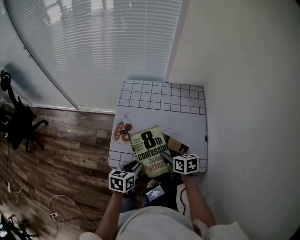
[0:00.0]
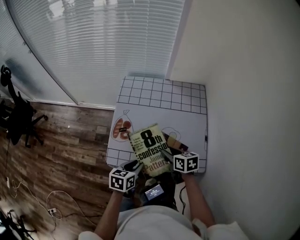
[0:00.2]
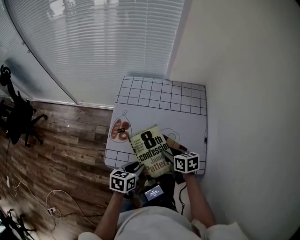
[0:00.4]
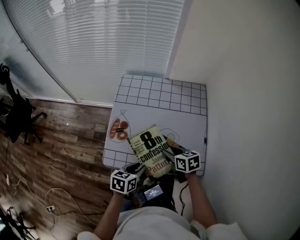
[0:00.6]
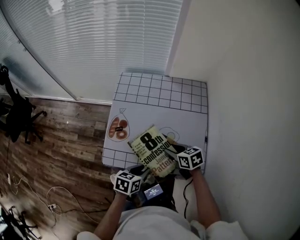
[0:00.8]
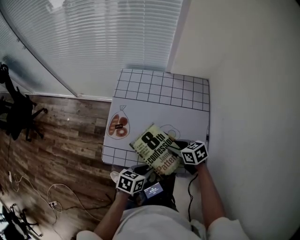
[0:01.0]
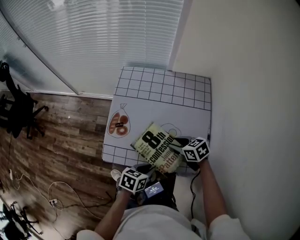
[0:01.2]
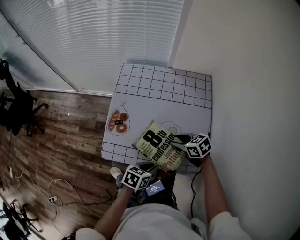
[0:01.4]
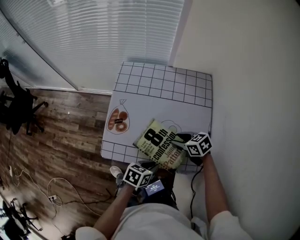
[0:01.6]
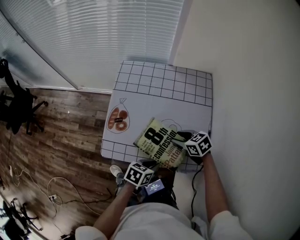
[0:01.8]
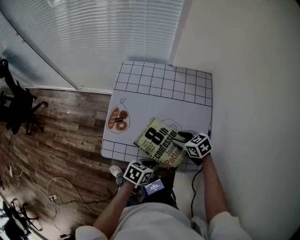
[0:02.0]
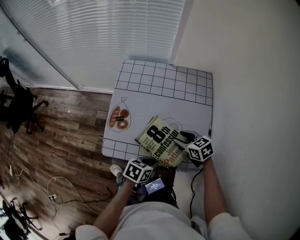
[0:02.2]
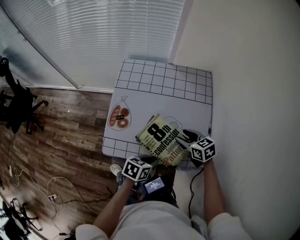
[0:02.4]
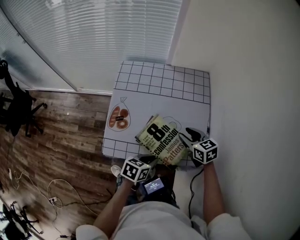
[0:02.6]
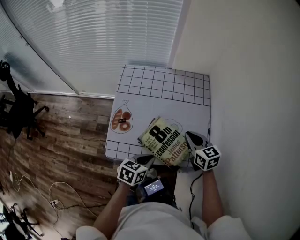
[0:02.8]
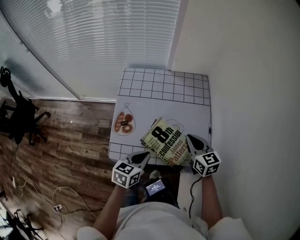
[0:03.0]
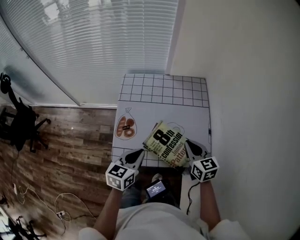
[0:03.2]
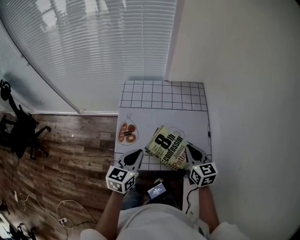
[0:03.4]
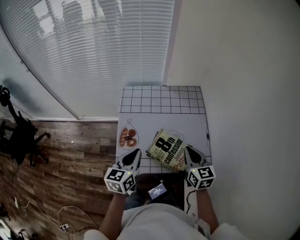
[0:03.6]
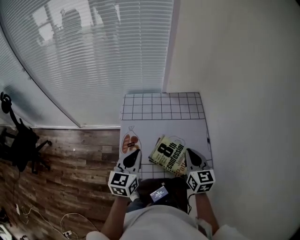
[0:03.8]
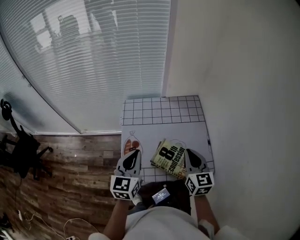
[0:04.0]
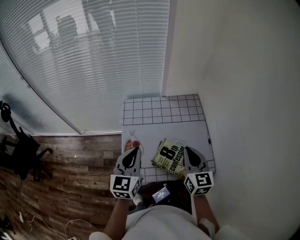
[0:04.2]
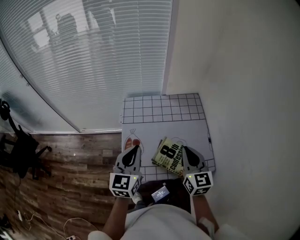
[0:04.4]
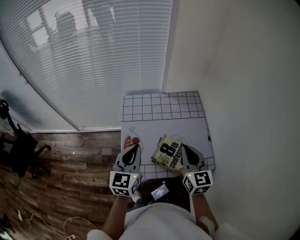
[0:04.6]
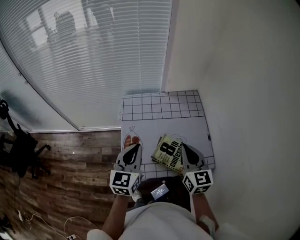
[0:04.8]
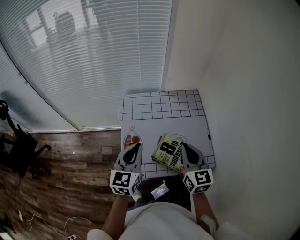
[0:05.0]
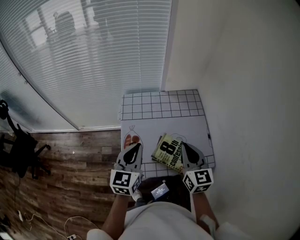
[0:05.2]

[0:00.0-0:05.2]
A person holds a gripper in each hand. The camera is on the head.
0.0 to 1.8 s: The left gripper ends up approximately 15 cm from where it was, and turns by roughly 20 degrees, while the right gripper moves about 10 cm, and rotates roughly 30 degrees.
1.8 to 3.4 s: Both grippers move upward, about 15 cm. The right gripper turns by approximately 50 degrees, and closes, while the left gripper swivels roughly 40 degrees.
3.4 to 5.2 s: The right gripper goes some 15 cm upward and to the left, while the left gripper goes approximately 10 cm upward.

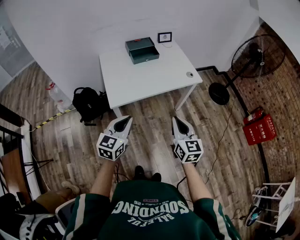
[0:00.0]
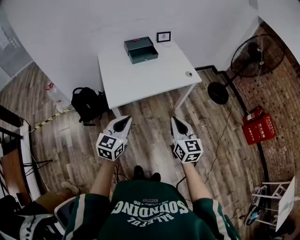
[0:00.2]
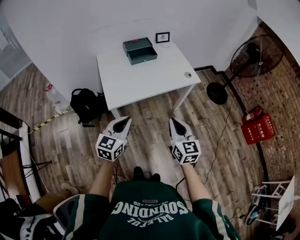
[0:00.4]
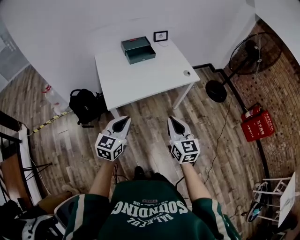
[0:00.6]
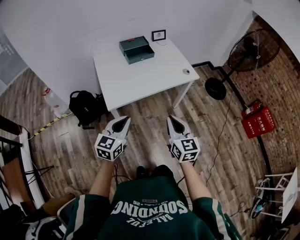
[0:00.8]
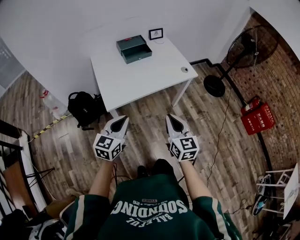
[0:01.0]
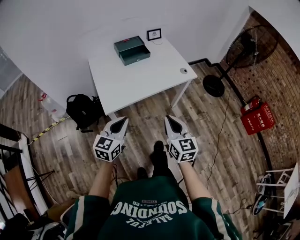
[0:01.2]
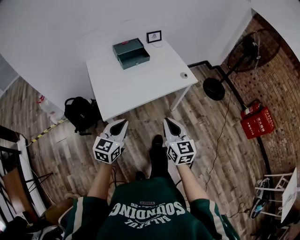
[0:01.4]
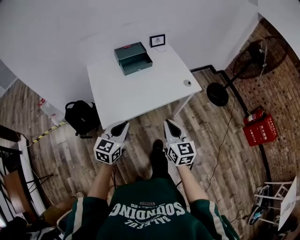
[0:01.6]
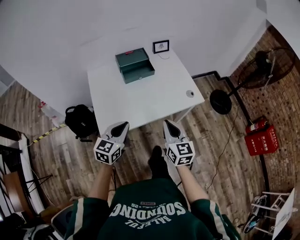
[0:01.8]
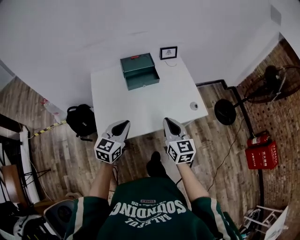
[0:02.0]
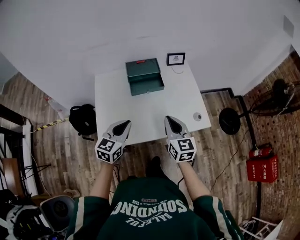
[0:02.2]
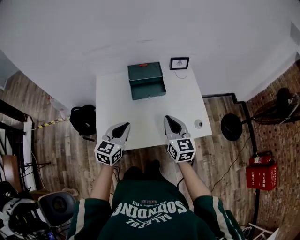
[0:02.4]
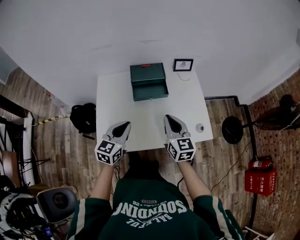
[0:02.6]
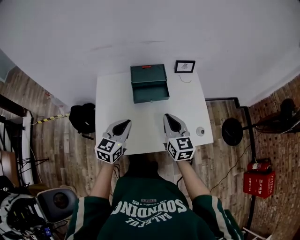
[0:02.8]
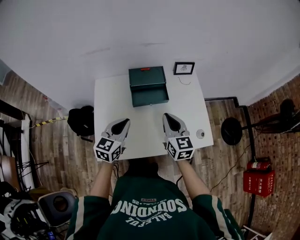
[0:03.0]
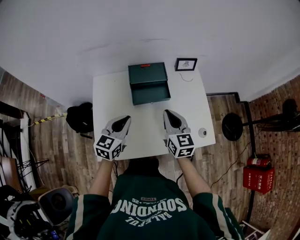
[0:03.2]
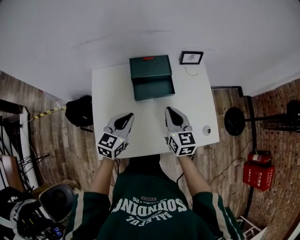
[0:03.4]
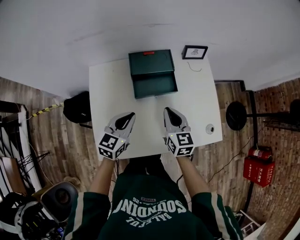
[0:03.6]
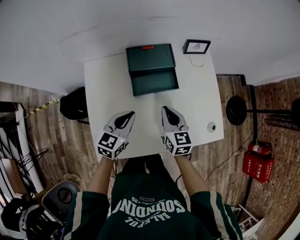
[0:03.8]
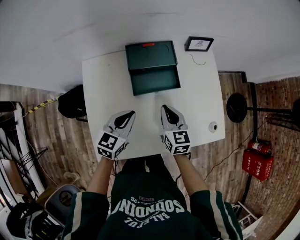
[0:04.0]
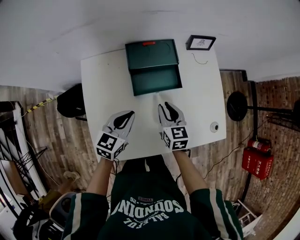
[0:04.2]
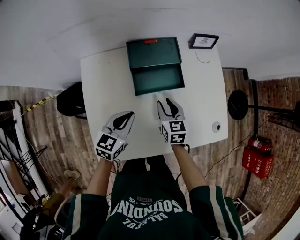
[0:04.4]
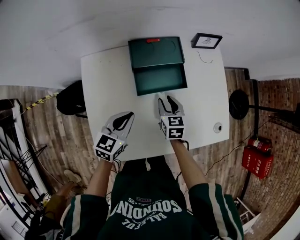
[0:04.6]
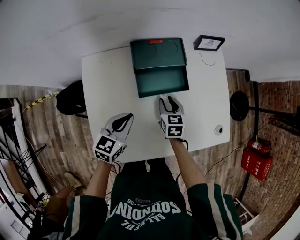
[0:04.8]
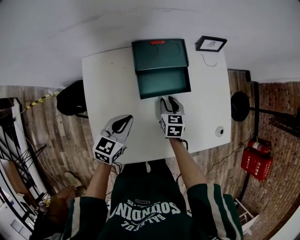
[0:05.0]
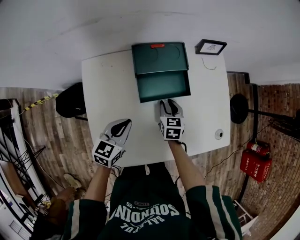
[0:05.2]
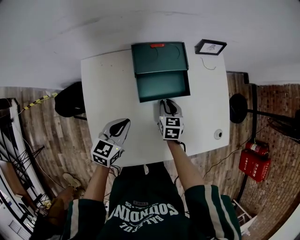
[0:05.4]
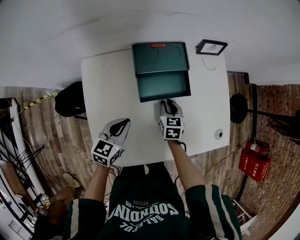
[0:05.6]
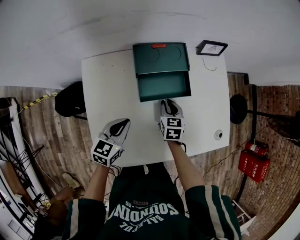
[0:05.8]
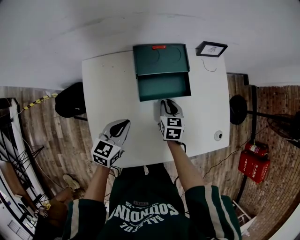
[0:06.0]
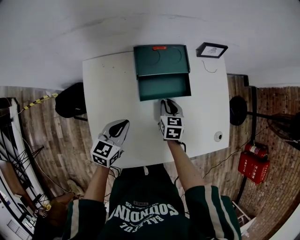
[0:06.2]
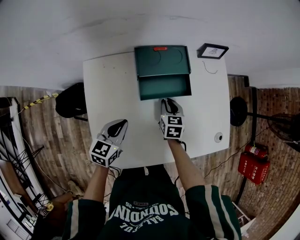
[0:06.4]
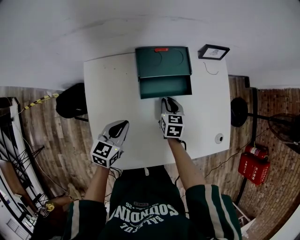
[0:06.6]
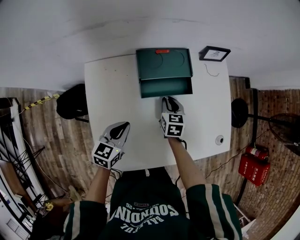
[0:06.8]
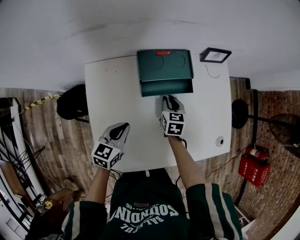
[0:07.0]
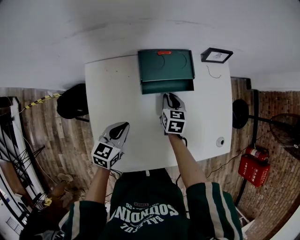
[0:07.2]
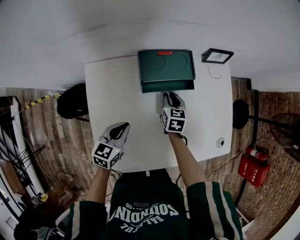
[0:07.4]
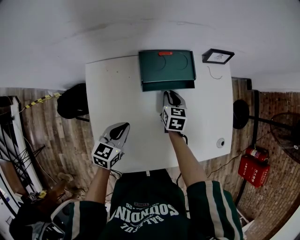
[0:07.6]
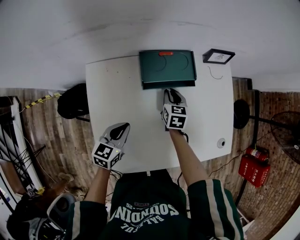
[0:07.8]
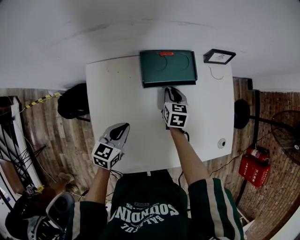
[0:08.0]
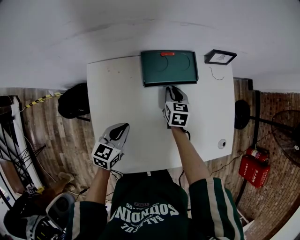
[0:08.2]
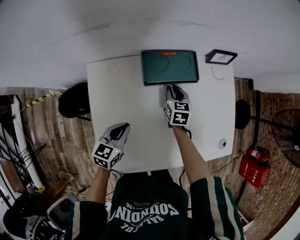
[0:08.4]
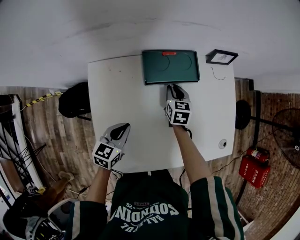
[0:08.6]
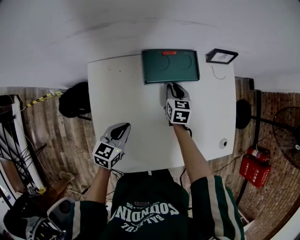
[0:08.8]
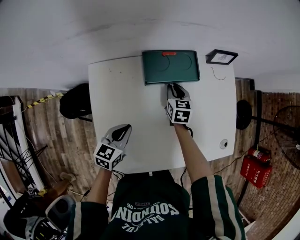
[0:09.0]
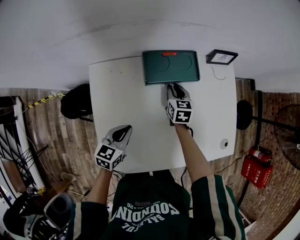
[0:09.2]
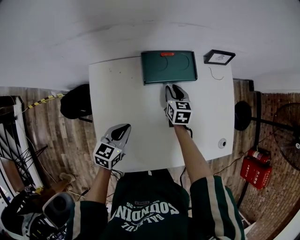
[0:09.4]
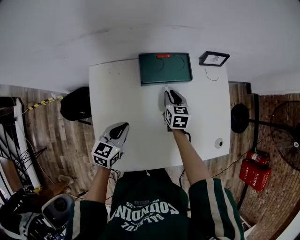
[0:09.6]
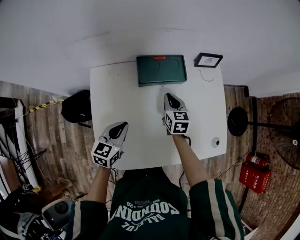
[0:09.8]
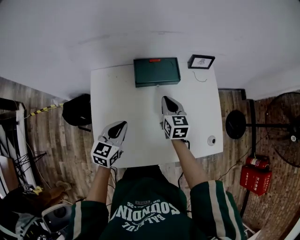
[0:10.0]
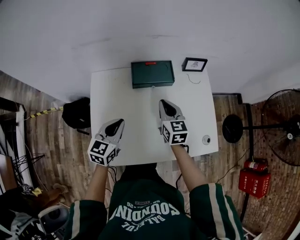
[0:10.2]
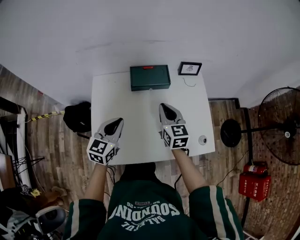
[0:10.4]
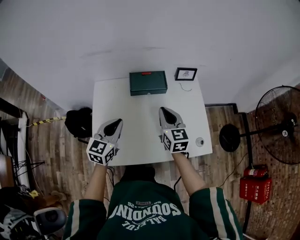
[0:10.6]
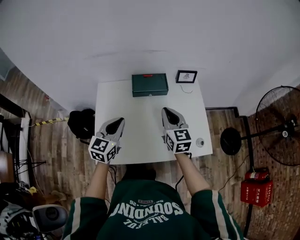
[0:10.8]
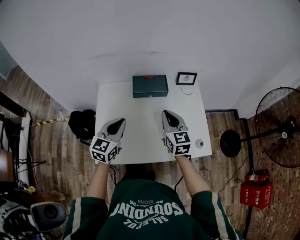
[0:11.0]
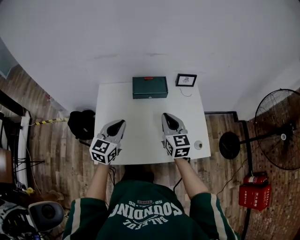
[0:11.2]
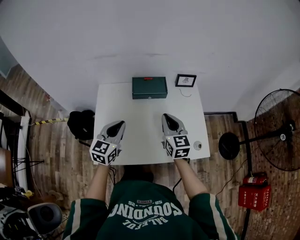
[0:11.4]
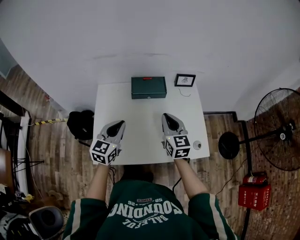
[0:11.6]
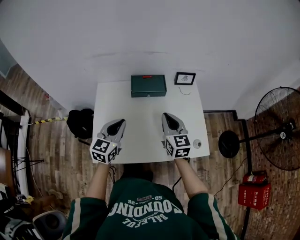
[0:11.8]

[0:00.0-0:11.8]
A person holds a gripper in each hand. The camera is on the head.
0.0 to 1.4 s: The grippers both shift forward by some 5 cm.
1.4 to 3.0 s: The two grippers go some 40 cm forward.
3.0 to 4.4 s: The right gripper goes roughly 20 cm downward and forward, changes its angle by some 20 degrees, and opens its fingers. Meanwhile the left gripper travels downward and forward by some 15 cm.
4.4 to 6.0 s: The left gripper shifts by some 5 cm. Meanwhile the right gripper heads downward, covering about 5 cm.
6.0 to 7.4 s: The right gripper shifts roughly 5 cm forward.
7.4 to 8.8 s: There are only small adjustments of the grippers.
8.8 to 10.4 s: The right gripper shifts roughly 25 cm upward and backward, and swivels approximately 20 degrees. The left gripper goes about 15 cm upward, and changes its angle by about 20 degrees.
10.4 to 11.8 s: The right gripper goes approximately 10 cm backward and upward; the left gripper moves some 5 cm.

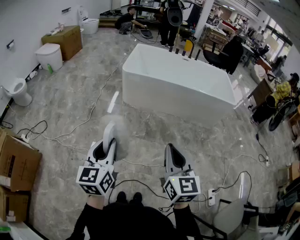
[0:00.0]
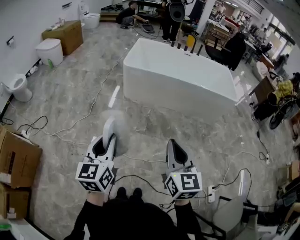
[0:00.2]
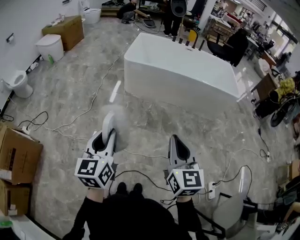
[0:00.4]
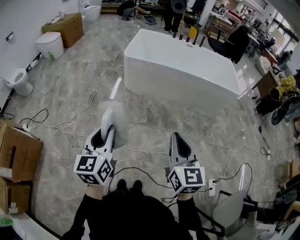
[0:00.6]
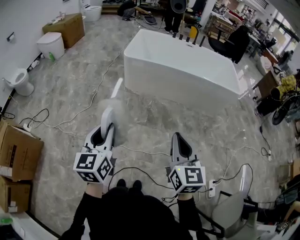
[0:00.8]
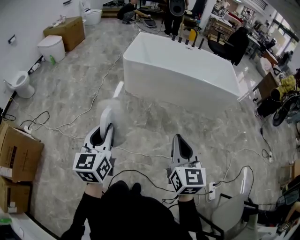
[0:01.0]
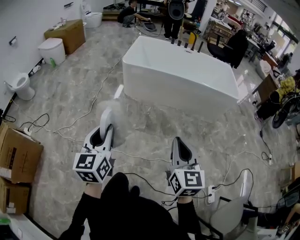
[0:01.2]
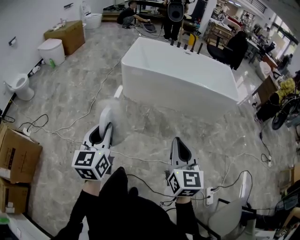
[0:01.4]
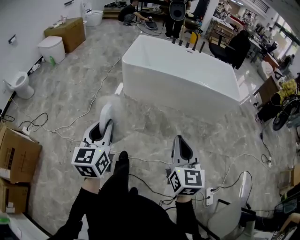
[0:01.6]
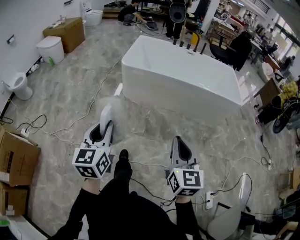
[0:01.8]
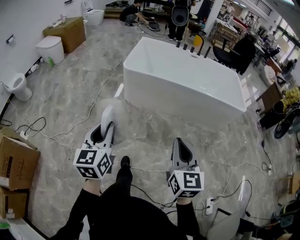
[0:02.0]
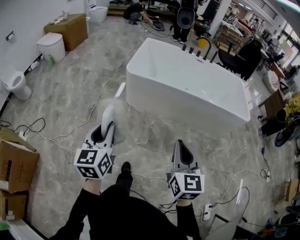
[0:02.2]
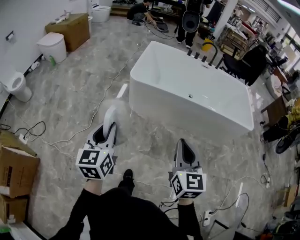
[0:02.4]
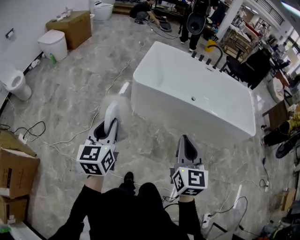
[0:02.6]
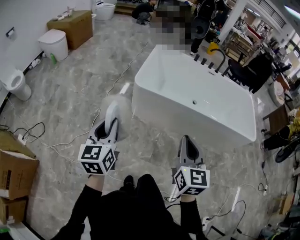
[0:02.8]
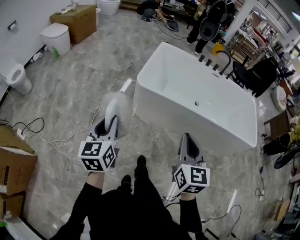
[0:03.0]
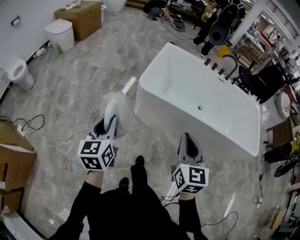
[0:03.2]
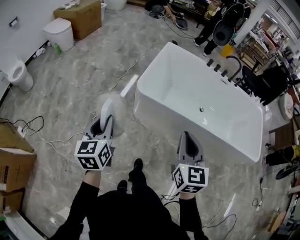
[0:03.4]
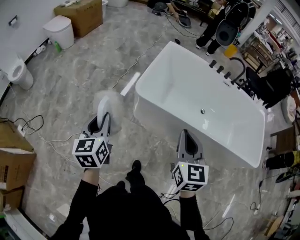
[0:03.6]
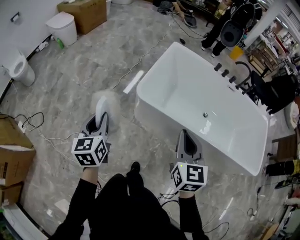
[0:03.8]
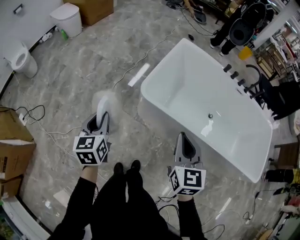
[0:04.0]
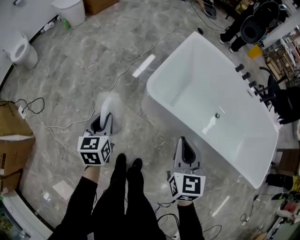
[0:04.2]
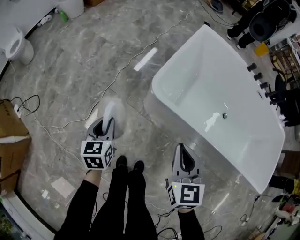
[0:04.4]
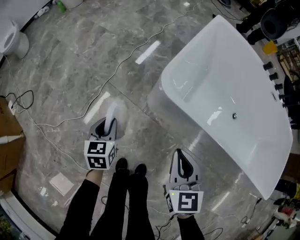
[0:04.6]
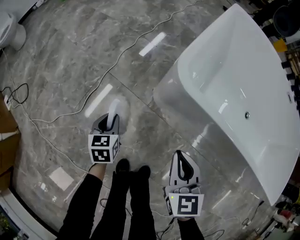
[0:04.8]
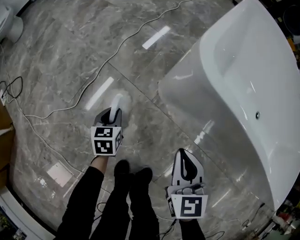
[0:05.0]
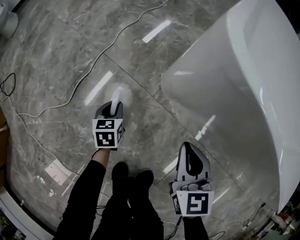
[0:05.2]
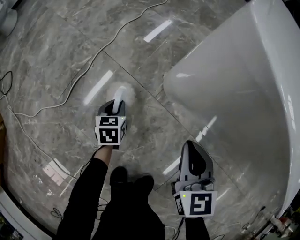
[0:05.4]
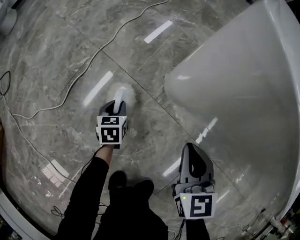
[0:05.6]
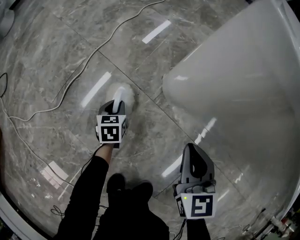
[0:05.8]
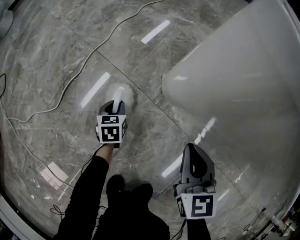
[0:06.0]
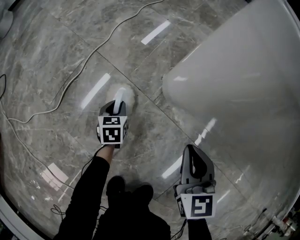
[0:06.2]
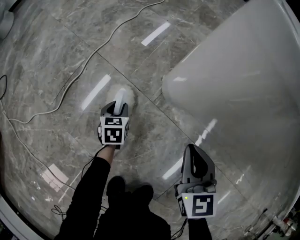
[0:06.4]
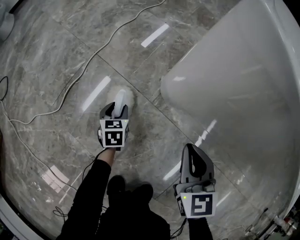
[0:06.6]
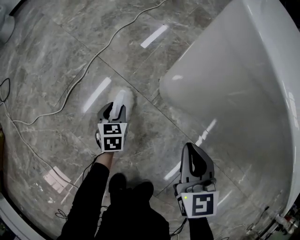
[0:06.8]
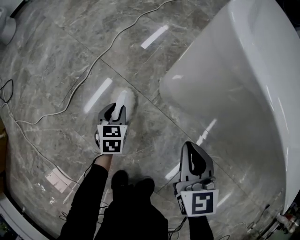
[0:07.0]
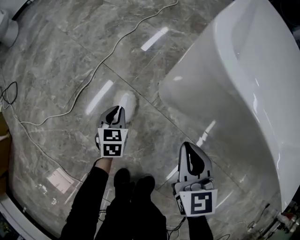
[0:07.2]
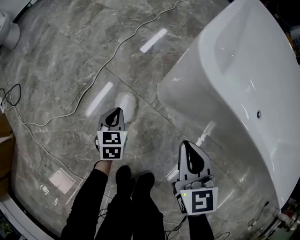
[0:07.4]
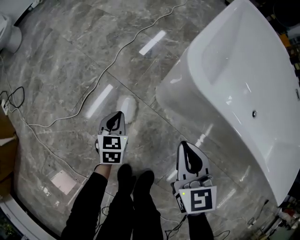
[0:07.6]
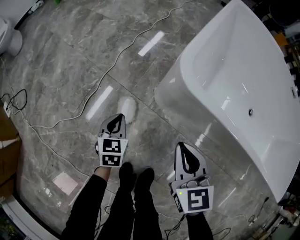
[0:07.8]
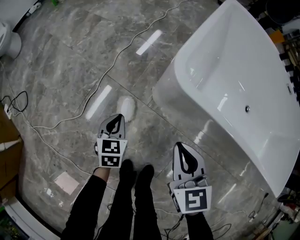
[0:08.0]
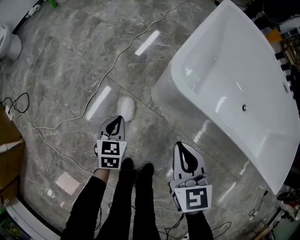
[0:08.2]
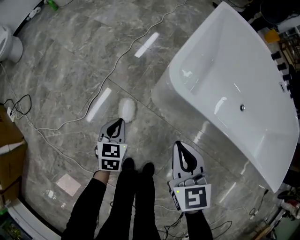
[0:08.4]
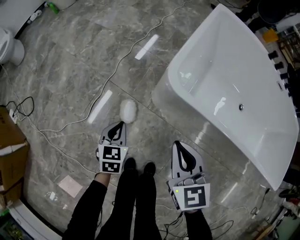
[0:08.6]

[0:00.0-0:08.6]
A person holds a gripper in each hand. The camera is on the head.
0.0 to 1.4 s: The left gripper moves roughly 5 cm. The right gripper is displaced to the right by about 10 cm.
1.4 to 2.8 s: The pair of grippers is taken forward, roughly 40 cm.
2.8 to 4.4 s: Both grippers travel together forward and downward, about 40 cm. The left gripper turns by about 30 degrees; the right gripper rotates some 30 degrees.
4.4 to 5.8 s: Both grippers travel together downward, roughly 50 cm.
5.8 to 7.2 s: The two grippers go approximately 10 cm upward. The left gripper opens, then closes again.
7.2 to 8.6 s: Both grippers move upward, approximately 25 cm.
